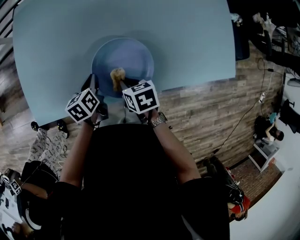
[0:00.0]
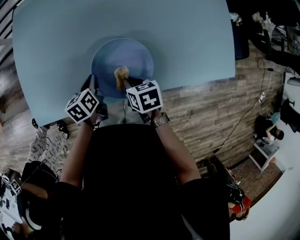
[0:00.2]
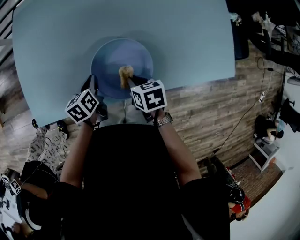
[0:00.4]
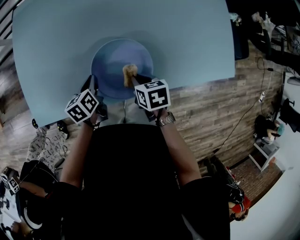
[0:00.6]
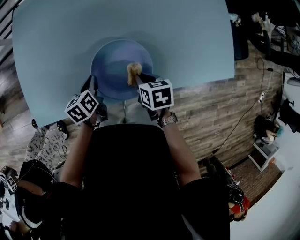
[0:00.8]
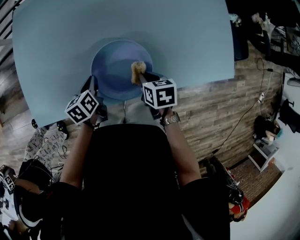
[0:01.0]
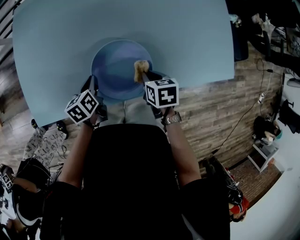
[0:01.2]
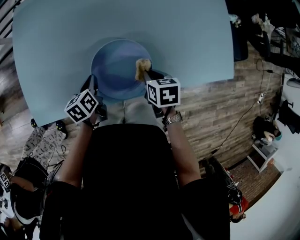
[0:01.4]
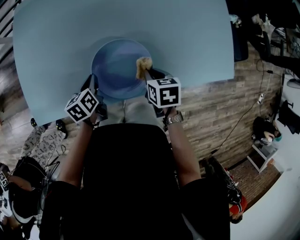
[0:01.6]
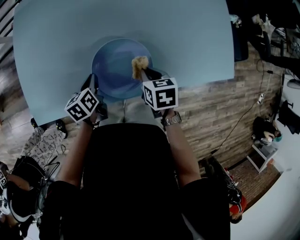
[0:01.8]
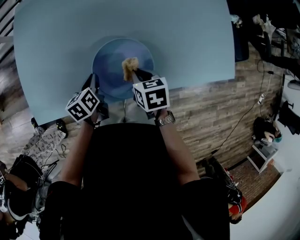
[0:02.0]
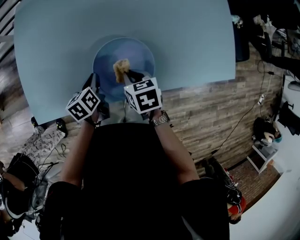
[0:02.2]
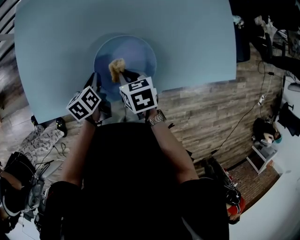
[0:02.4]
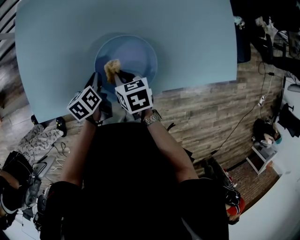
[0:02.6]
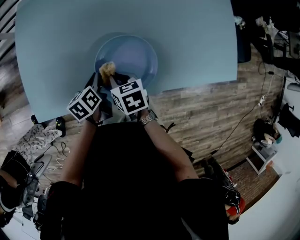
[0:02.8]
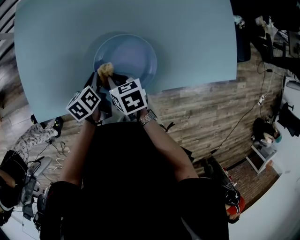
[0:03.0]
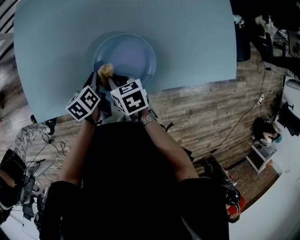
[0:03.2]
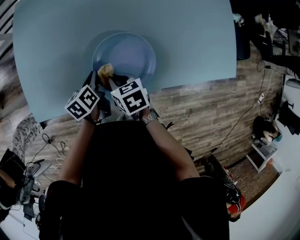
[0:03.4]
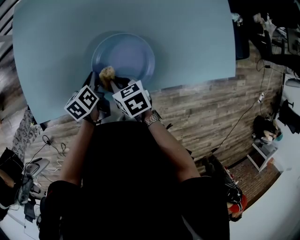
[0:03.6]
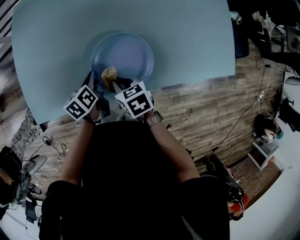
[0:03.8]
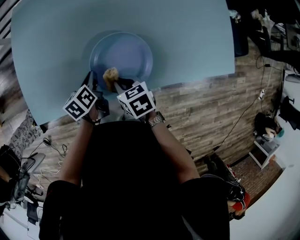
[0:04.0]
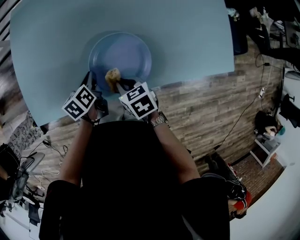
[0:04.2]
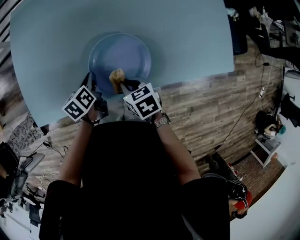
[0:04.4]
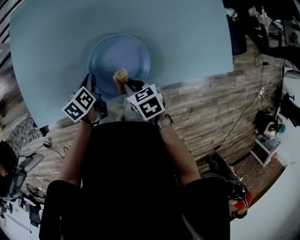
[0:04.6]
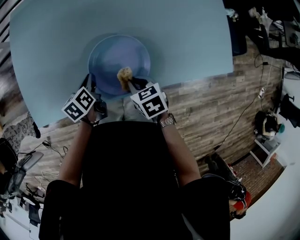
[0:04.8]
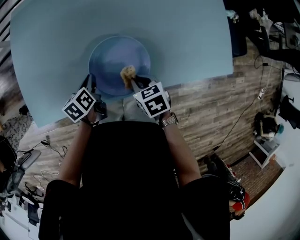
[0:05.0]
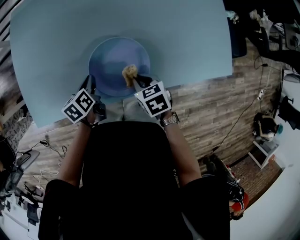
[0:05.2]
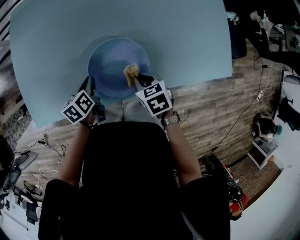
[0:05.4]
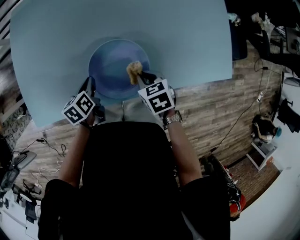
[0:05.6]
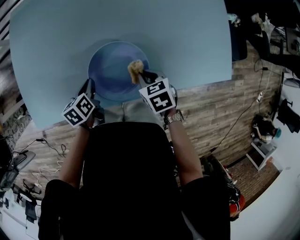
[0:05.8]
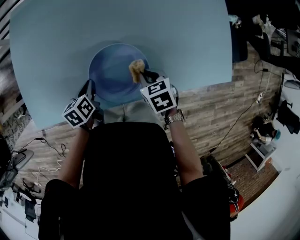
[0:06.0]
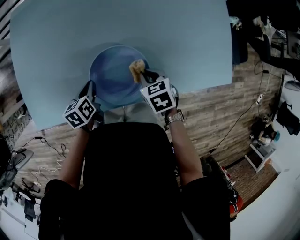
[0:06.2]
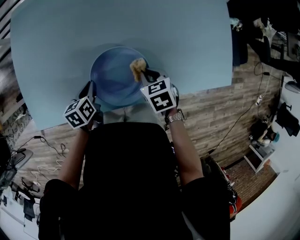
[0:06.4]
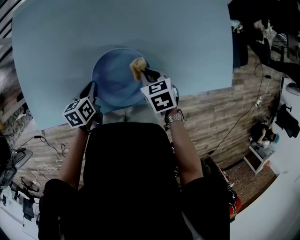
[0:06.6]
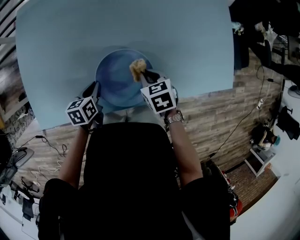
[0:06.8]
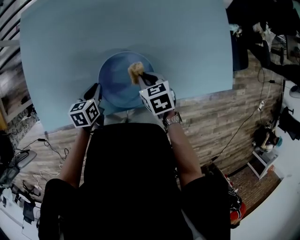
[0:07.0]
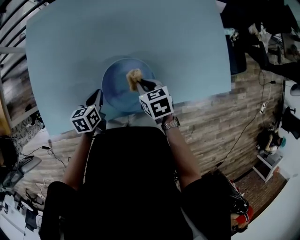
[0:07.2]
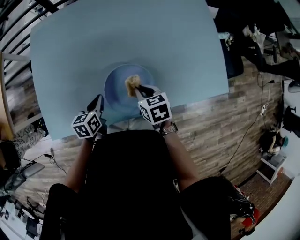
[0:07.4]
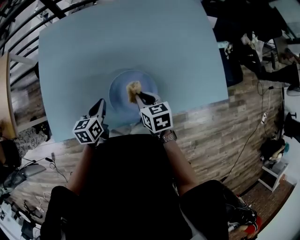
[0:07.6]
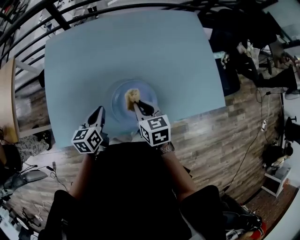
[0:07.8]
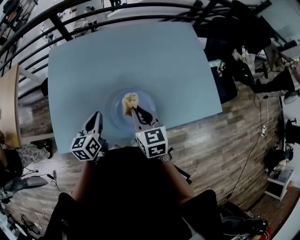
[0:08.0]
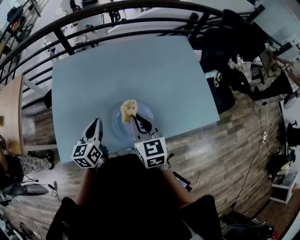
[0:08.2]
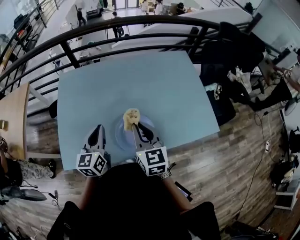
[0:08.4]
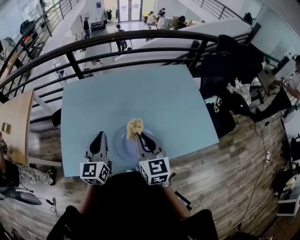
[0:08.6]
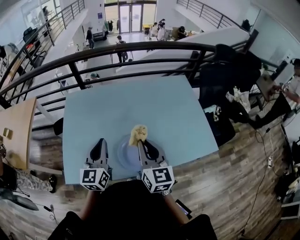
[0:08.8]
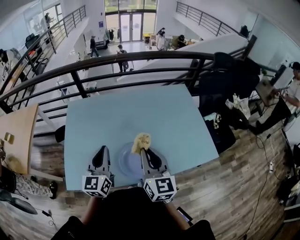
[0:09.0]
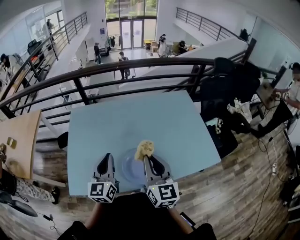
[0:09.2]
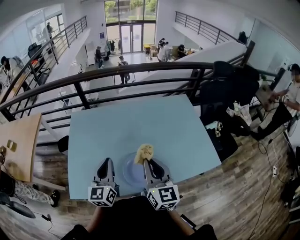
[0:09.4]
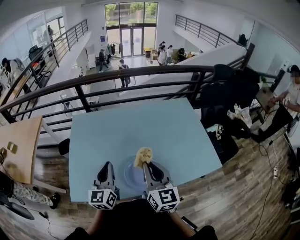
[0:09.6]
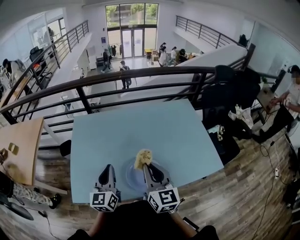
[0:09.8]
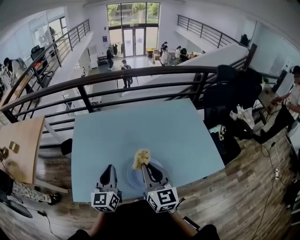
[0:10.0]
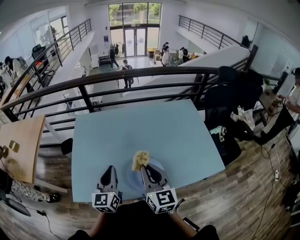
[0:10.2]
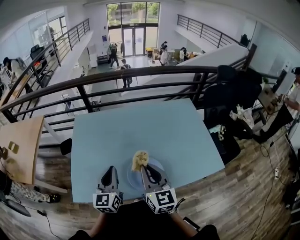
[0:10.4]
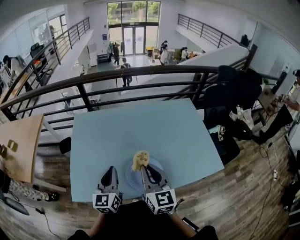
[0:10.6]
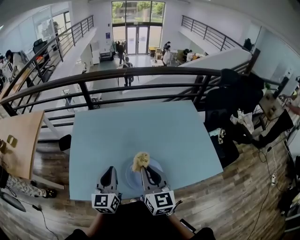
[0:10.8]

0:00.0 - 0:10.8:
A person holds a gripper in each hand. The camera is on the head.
0:00.0 - 0:01.6: The right gripper shifts approximately 10 cm to the right.
0:01.6 - 0:03.0: The right gripper travels to the left by roughly 15 cm.
0:03.0 - 0:04.6: The right gripper shifts roughly 10 cm backward and to the right.
0:04.6 - 0:06.2: The right gripper heads to the right and forward, covering roughly 10 cm.
0:06.2 - 0:07.8: The right gripper goes approximately 15 cm upward and to the left, and changes its angle by about 30 degrees. Meanwhile the left gripper goes approximately 15 cm upward, and changes its angle by roughly 30 degrees.
0:07.8 - 0:09.2: The grippers both shift upward by about 25 cm. The left gripper angles its fingers upward, by roughly 30 degrees; the right gripper tips its fingers upward by roughly 40 degrees.
0:09.2 - 0:10.8: The right gripper moves about 5 cm.

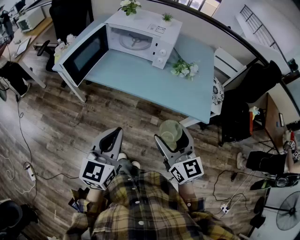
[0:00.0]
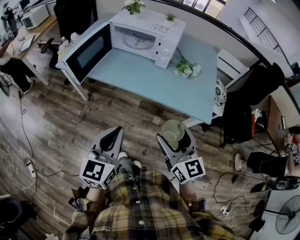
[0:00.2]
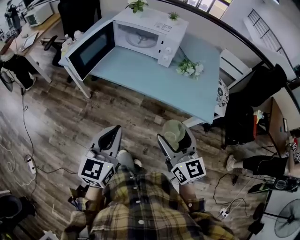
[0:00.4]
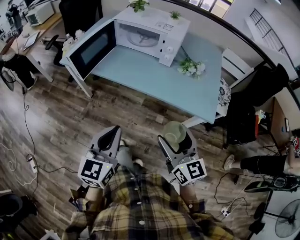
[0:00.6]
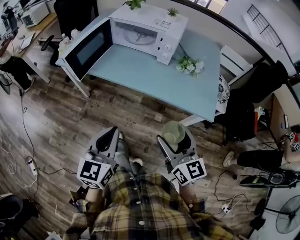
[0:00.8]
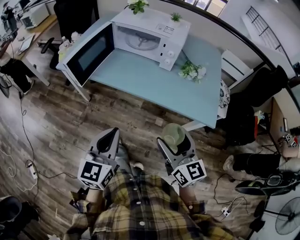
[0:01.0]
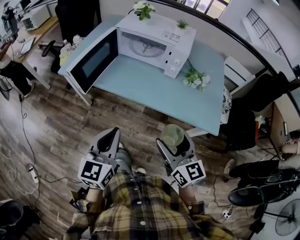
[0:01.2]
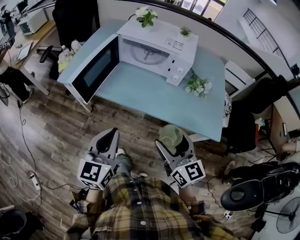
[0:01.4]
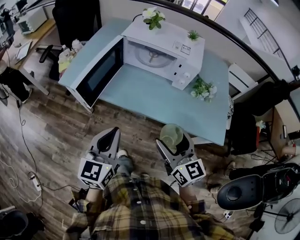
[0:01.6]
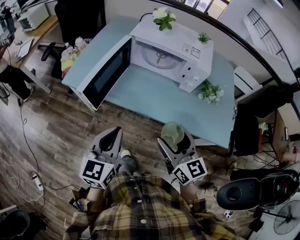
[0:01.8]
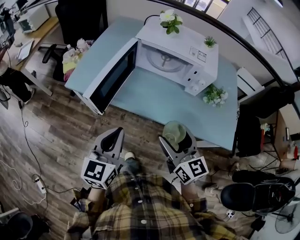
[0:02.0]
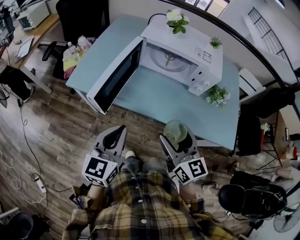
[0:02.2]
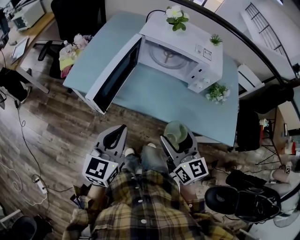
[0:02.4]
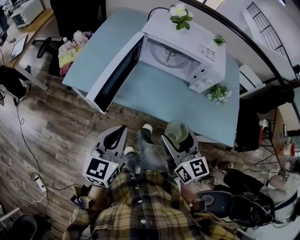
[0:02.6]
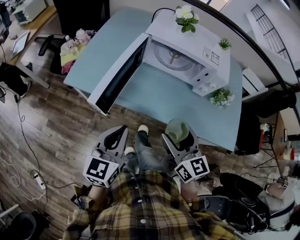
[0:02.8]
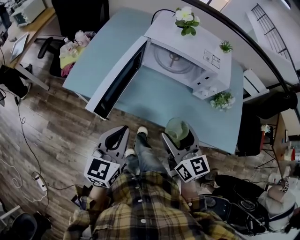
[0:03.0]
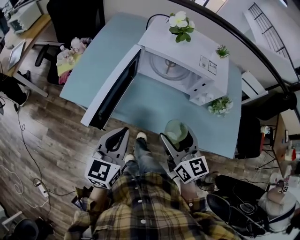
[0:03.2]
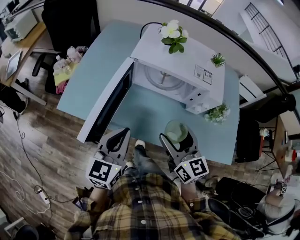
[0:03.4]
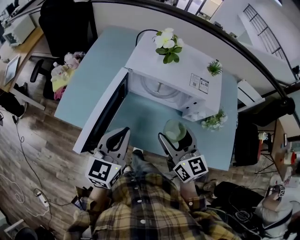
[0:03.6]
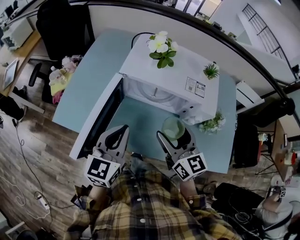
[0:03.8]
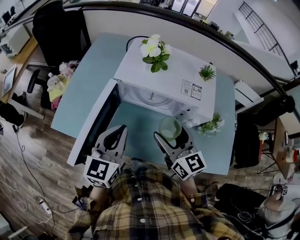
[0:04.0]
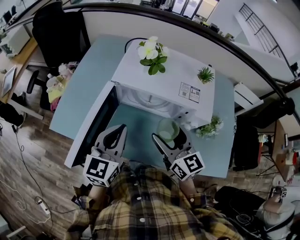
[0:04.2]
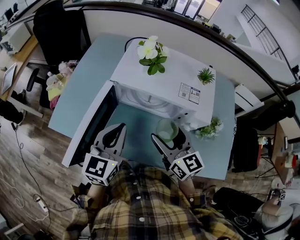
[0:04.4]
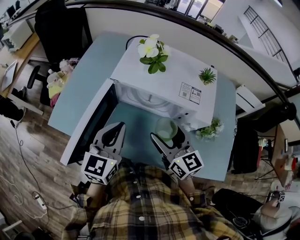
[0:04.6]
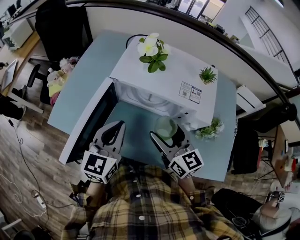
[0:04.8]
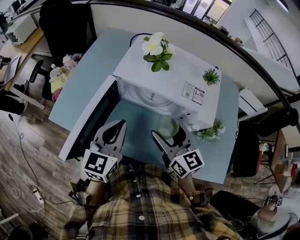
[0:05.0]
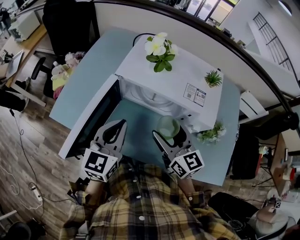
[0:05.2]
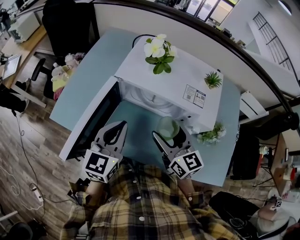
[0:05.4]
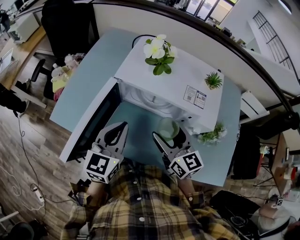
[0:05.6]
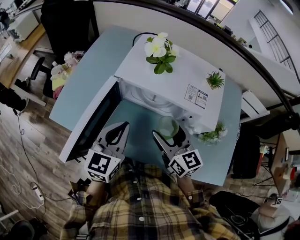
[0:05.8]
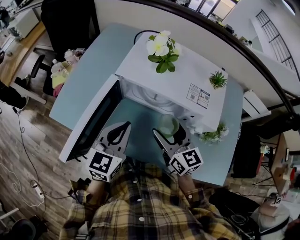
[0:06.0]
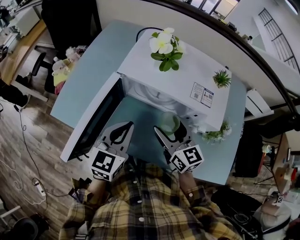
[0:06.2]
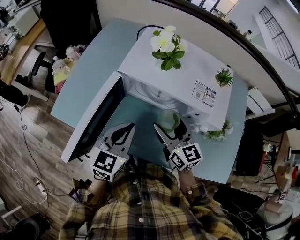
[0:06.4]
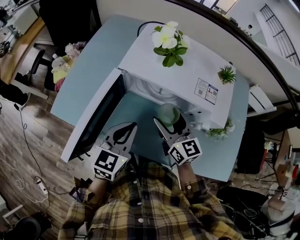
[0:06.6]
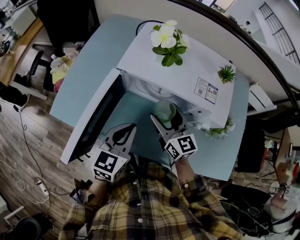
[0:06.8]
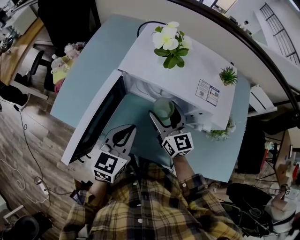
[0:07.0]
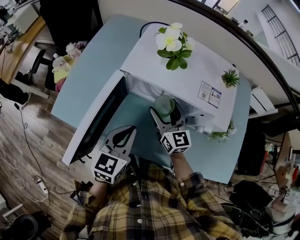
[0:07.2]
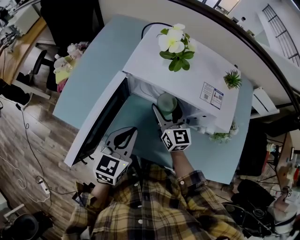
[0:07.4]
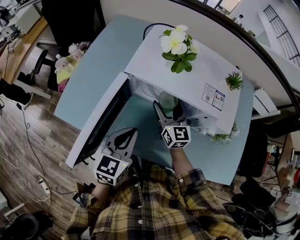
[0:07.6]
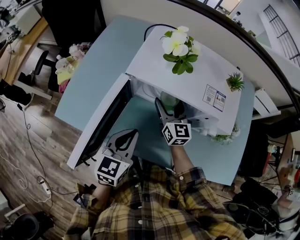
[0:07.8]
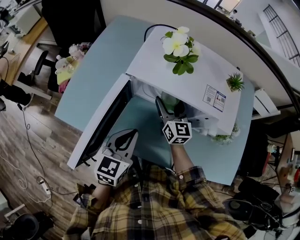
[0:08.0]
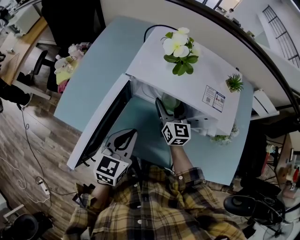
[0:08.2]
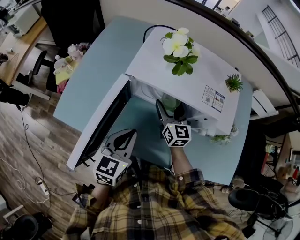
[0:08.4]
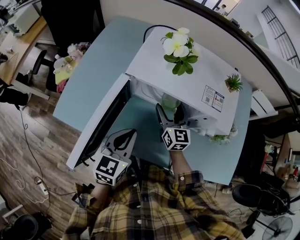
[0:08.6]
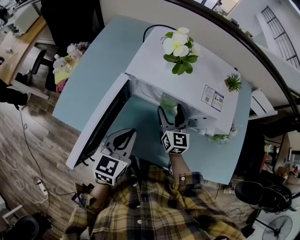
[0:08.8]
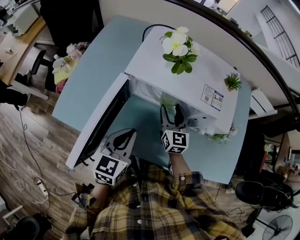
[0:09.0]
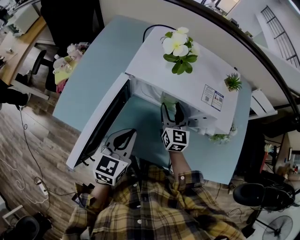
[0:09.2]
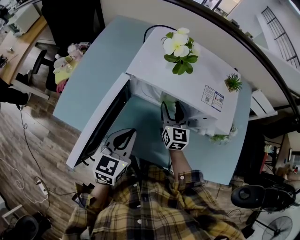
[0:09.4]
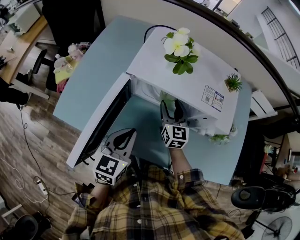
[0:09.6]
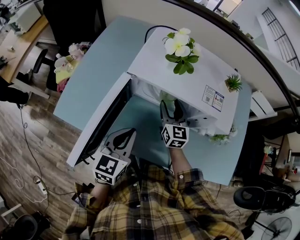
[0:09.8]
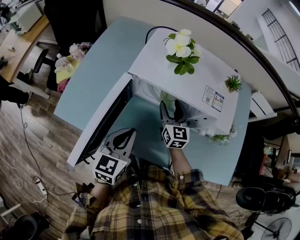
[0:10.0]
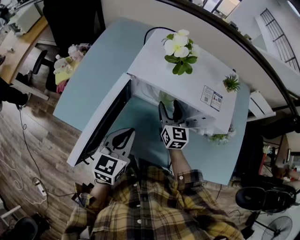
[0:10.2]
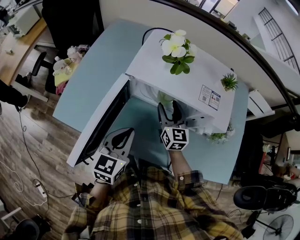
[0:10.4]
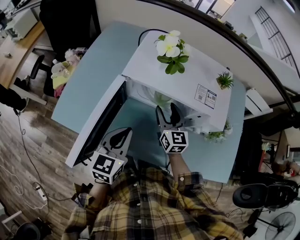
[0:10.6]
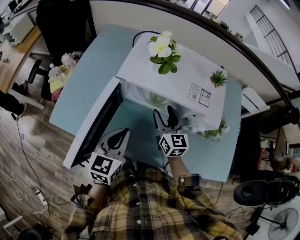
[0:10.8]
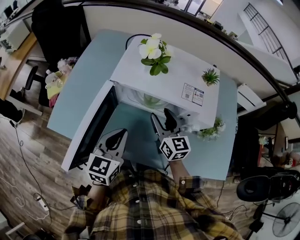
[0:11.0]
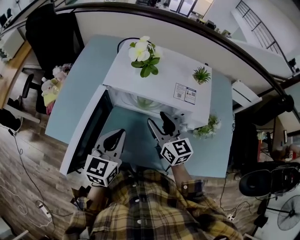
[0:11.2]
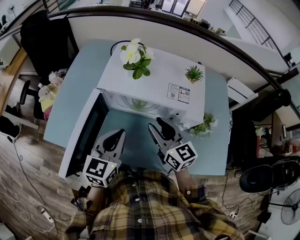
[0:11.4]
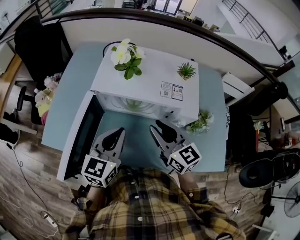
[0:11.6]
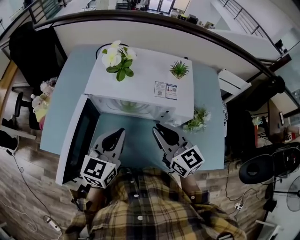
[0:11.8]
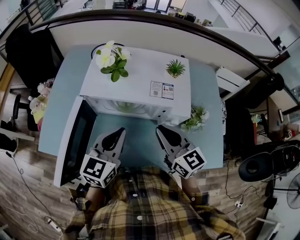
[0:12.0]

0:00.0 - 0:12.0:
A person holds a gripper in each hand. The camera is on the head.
0:00.0 - 0:01.6: The two grippers go about 20 cm forward and to the left.
0:01.6 - 0:03.0: Both grippers move forward and to the left, approximately 15 cm.
0:03.0 - 0:04.4: The right gripper travels forward by some 20 cm, while the left gripper is displaced forward and to the right by roughly 20 cm.
0:04.4 - 0:06.0: The grippers stay close to where they were, moving slightly.
0:06.0 - 0:07.6: The right gripper is displaced forward and downward by some 15 cm.
0:07.6 - 0:10.4: There are only small adjustments of the grippers.
0:10.4 - 0:12.0: The right gripper heads upward, backward and to the right, covering about 20 cm, and closes up. The left gripper is displaced to the right and upward by approximately 10 cm.

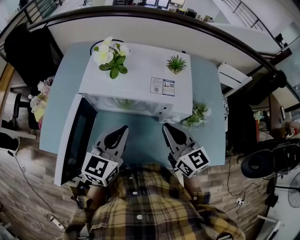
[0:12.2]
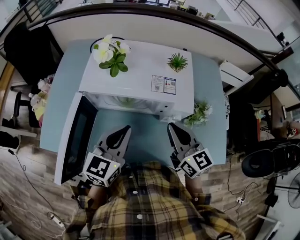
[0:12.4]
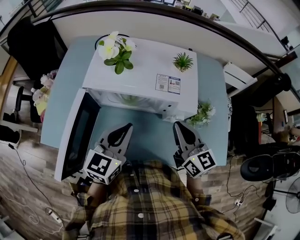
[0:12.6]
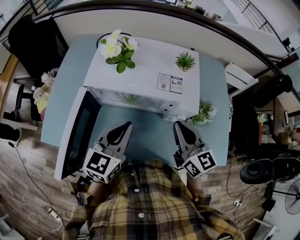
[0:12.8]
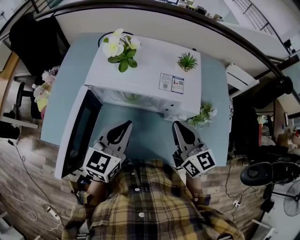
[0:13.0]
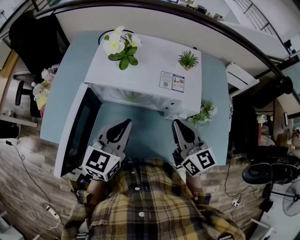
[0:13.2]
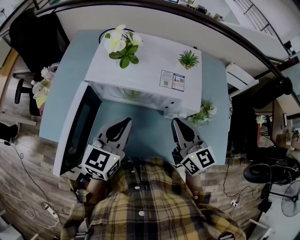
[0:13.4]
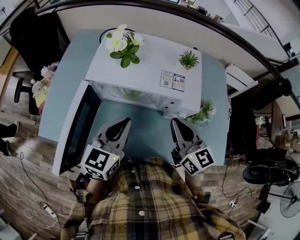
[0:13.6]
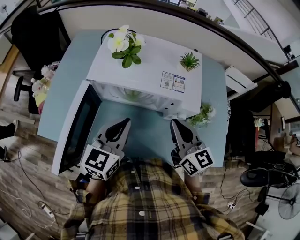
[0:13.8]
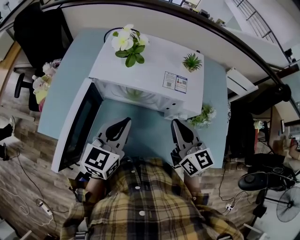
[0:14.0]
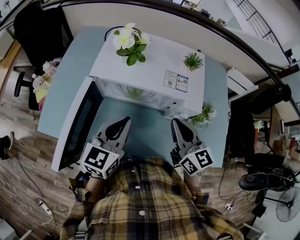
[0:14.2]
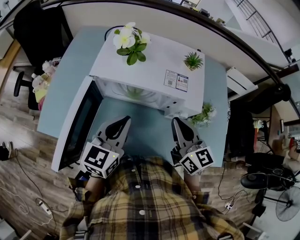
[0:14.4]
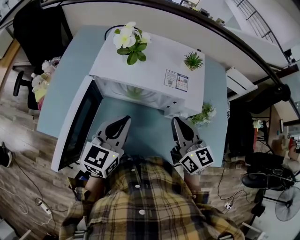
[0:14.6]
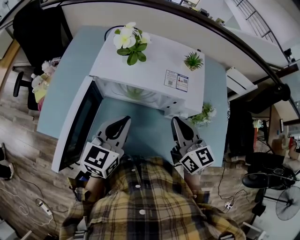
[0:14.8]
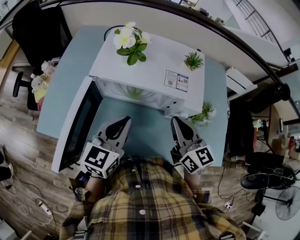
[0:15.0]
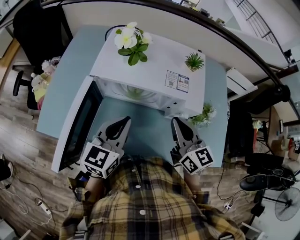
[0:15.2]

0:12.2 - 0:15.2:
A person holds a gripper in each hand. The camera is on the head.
0:12.2 - 0:13.8: The grippers stay close to where they were, moving slightly.
0:13.8 - 0:15.2: Both grippers stay put.
